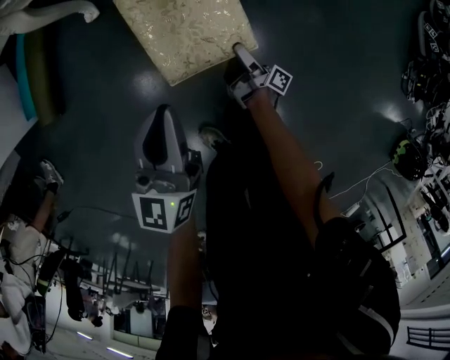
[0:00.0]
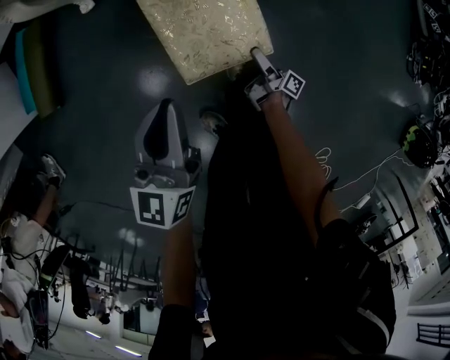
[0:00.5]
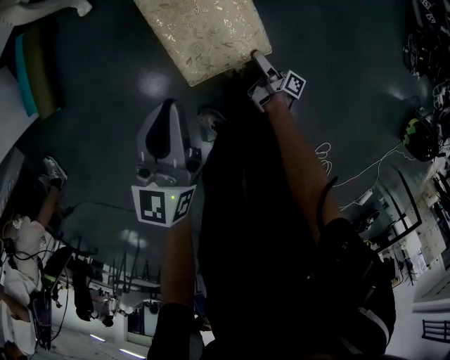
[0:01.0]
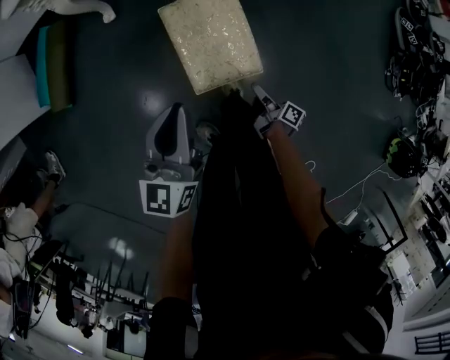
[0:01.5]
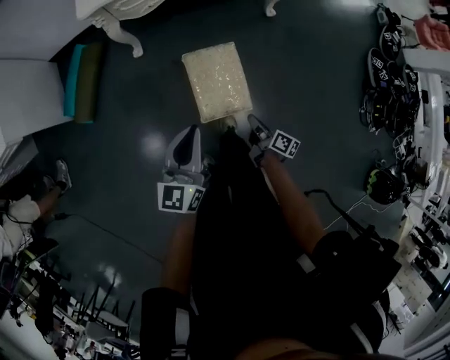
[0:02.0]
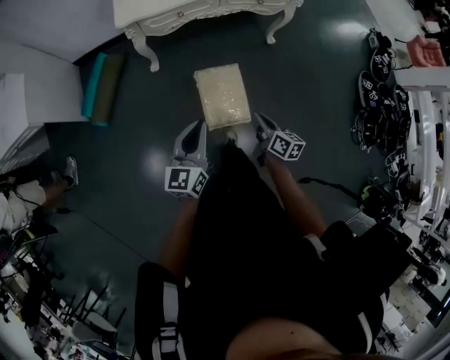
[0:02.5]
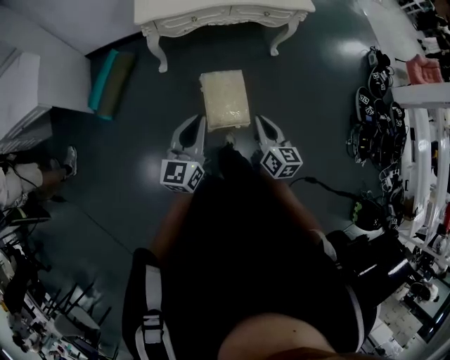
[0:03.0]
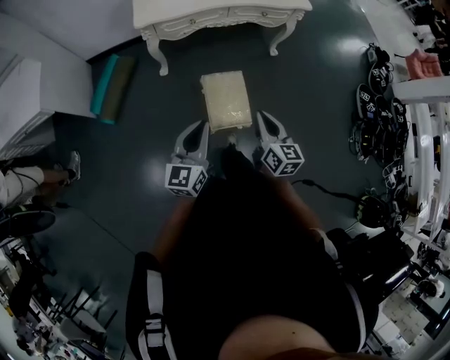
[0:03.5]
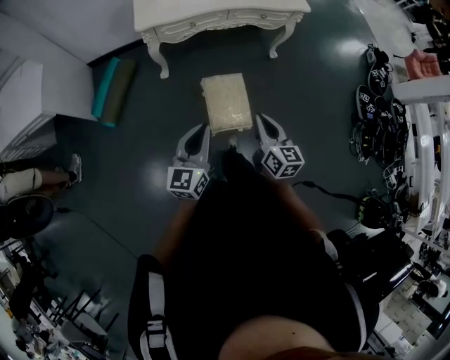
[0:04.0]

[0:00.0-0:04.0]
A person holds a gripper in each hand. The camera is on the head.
0:00.0 to 0:02.0: The left gripper shifts approximately 25 cm upward.
0:02.0 to 0:04.0: The left gripper moves upward, about 15 cm.

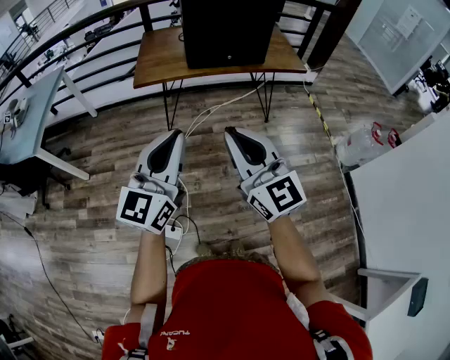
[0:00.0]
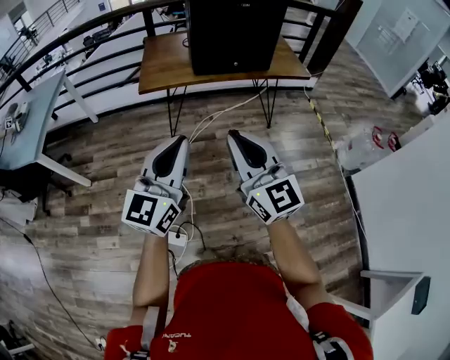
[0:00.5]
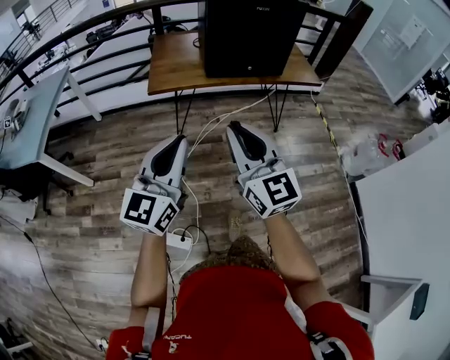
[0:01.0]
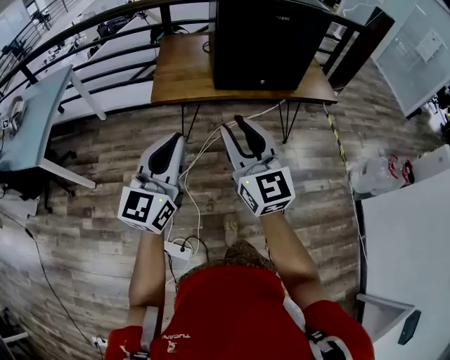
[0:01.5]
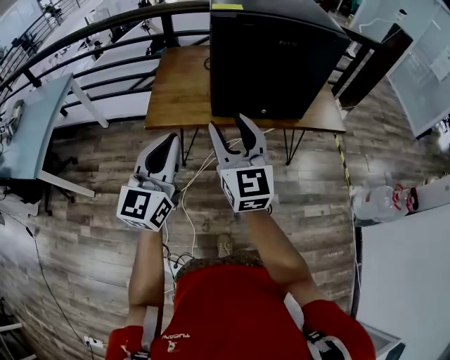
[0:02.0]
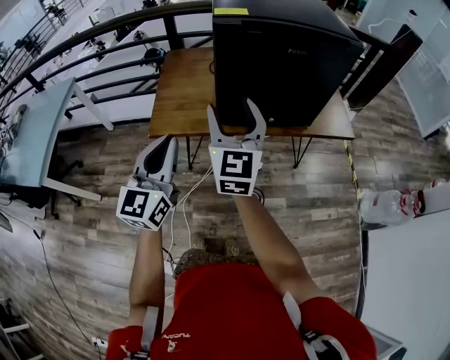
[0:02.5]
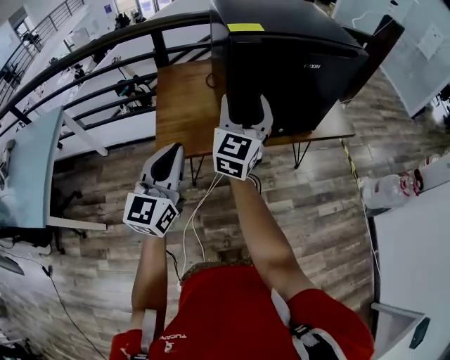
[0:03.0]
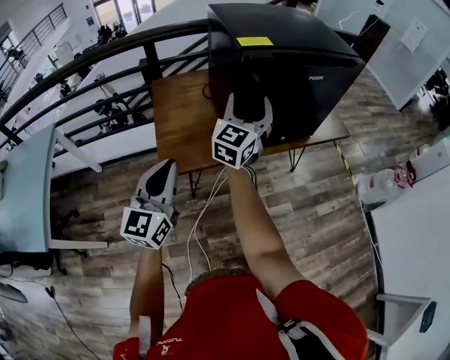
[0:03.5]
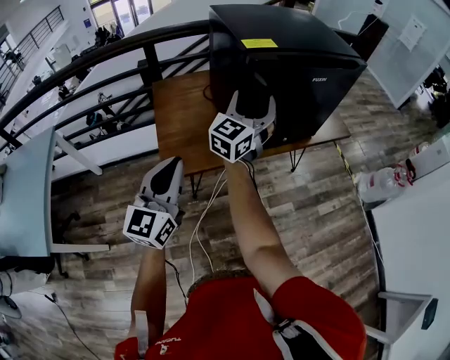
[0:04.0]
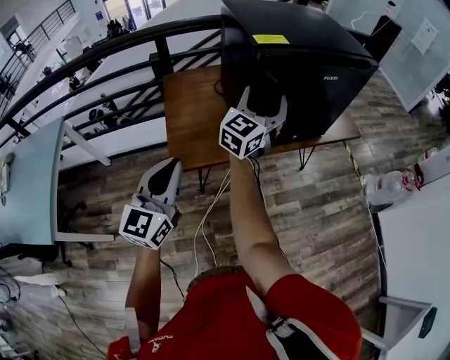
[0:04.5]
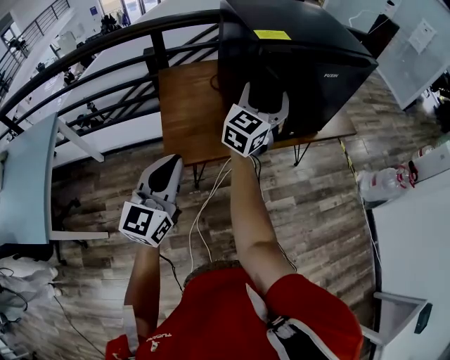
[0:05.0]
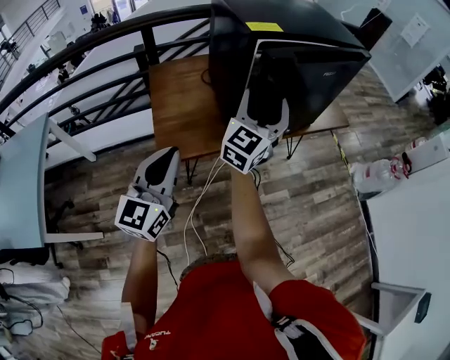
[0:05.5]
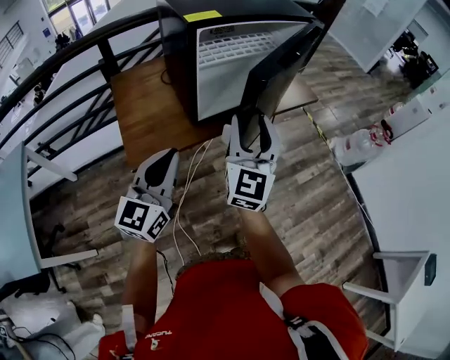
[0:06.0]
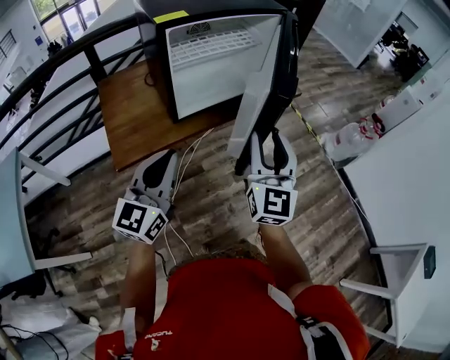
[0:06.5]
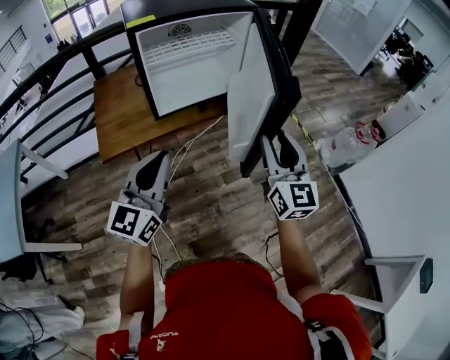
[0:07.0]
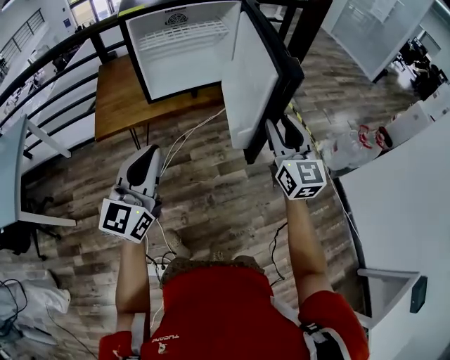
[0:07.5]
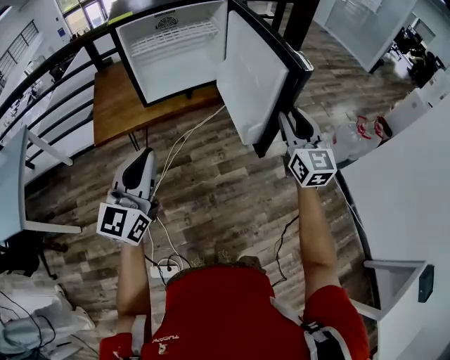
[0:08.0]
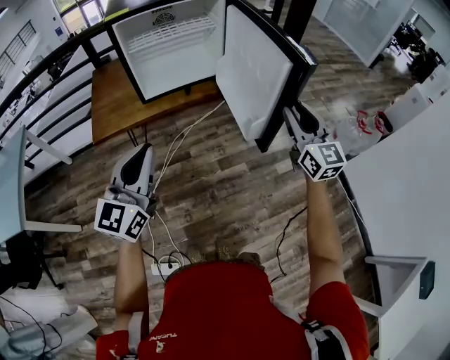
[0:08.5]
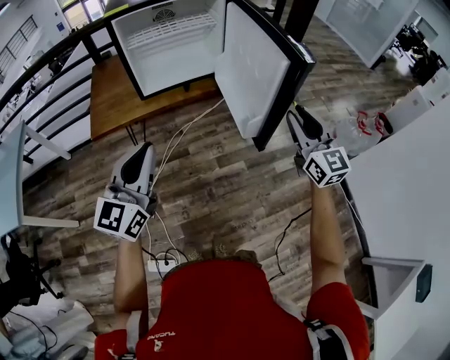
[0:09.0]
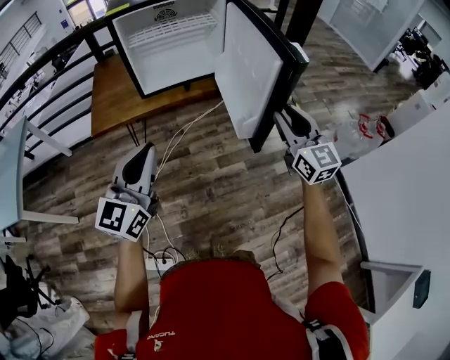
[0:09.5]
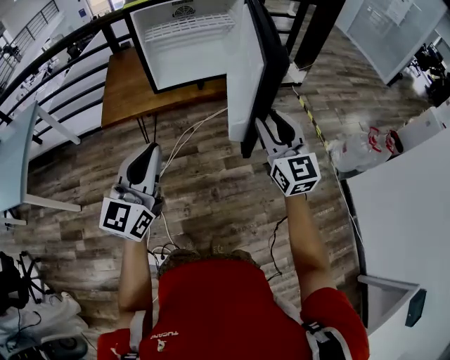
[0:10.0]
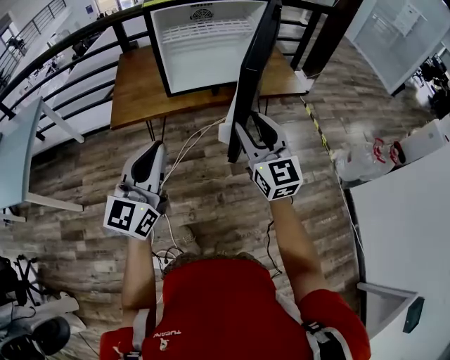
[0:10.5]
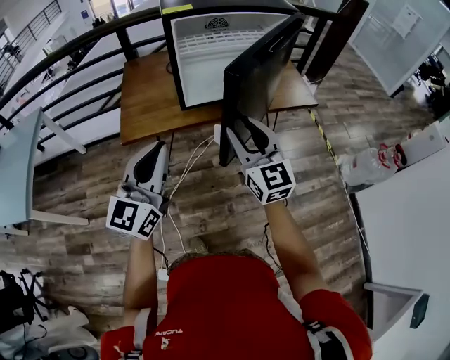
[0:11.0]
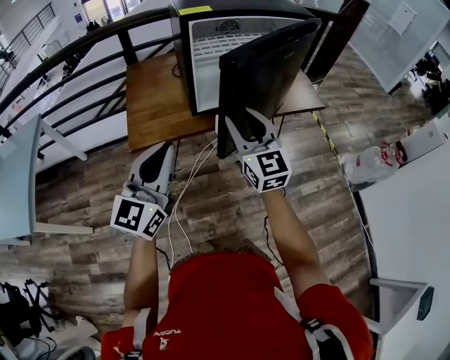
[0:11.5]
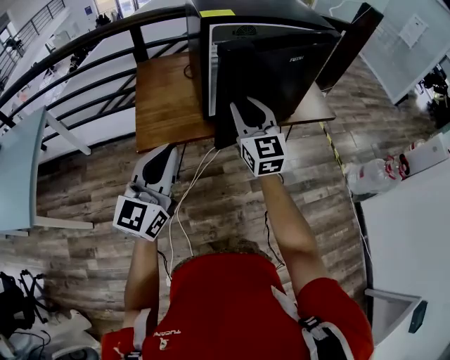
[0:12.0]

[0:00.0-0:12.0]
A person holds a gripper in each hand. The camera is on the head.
0:00.0 to 0:02.0: Both grippers travel together forward, some 35 cm. The right gripper opens up.
0:02.0 to 0:04.0: The right gripper changes place by about 25 cm, and turns by about 60 degrees; the left gripper changes place by roughly 20 cm.
0:04.0 to 0:06.0: The right gripper goes about 20 cm to the right and backward. The left gripper goes approximately 10 cm to the right.
0:06.0 to 0:08.0: The right gripper shifts roughly 40 cm to the right, and rotates approximately 20 degrees; the left gripper moves to the right and backward, some 30 cm.
0:08.0 to 0:10.0: The right gripper goes about 5 cm to the left.
0:10.0 to 0:12.0: Both grippers travel together to the left and forward, some 30 cm.

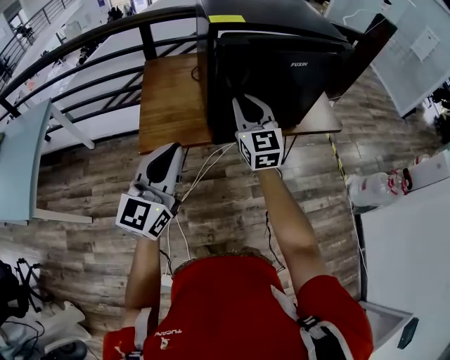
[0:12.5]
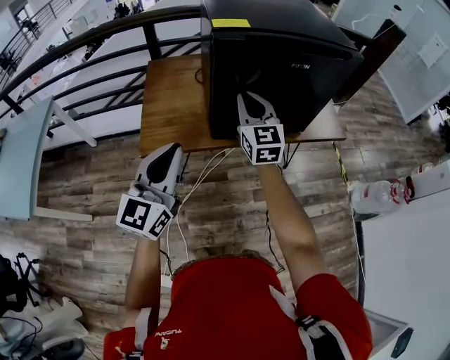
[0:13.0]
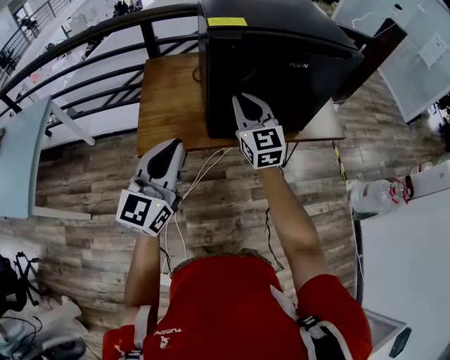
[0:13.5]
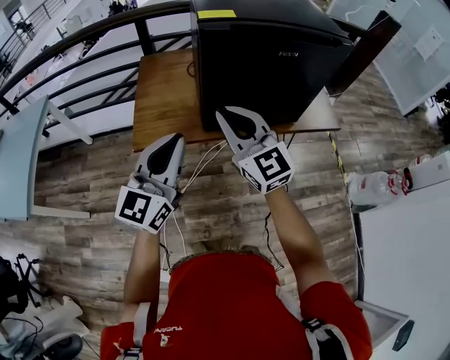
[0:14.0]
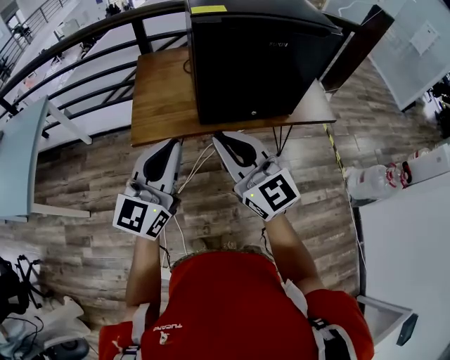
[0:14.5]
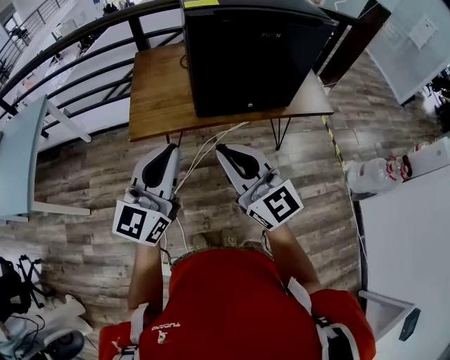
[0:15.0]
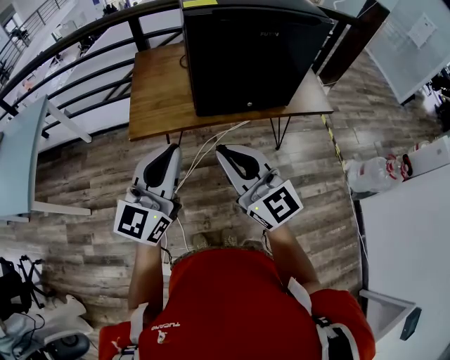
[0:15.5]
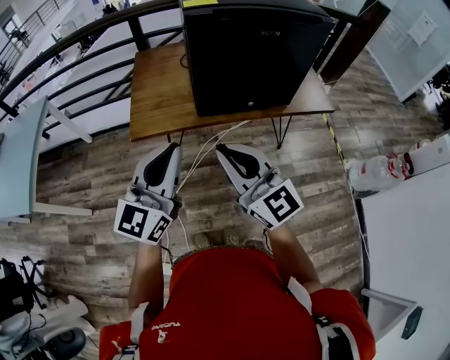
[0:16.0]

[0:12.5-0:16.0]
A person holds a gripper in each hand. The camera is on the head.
0:12.5 to 0:14.5: The right gripper goes approximately 15 cm backward, and turns by approximately 20 degrees.
0:14.5 to 0:16.0: The right gripper ends up some 5 cm from where it was.

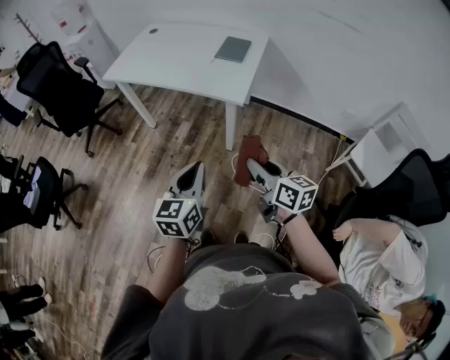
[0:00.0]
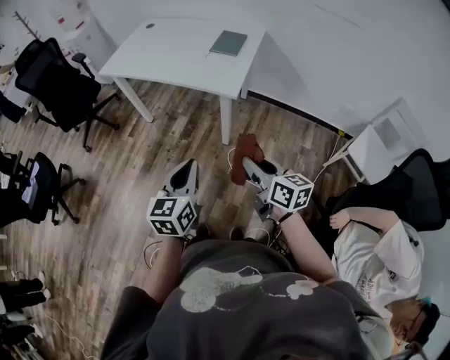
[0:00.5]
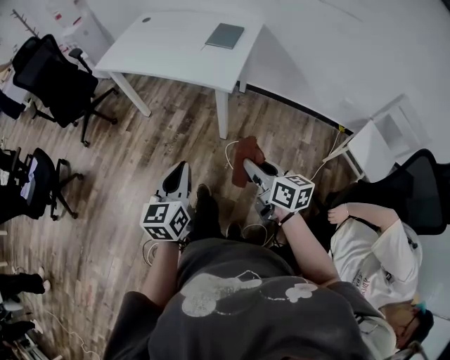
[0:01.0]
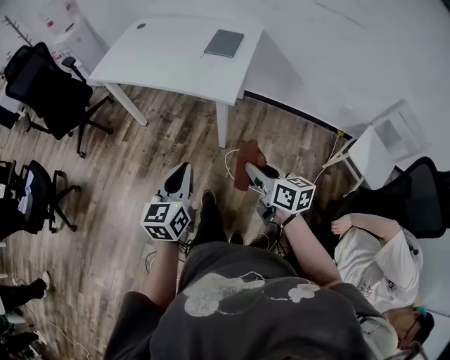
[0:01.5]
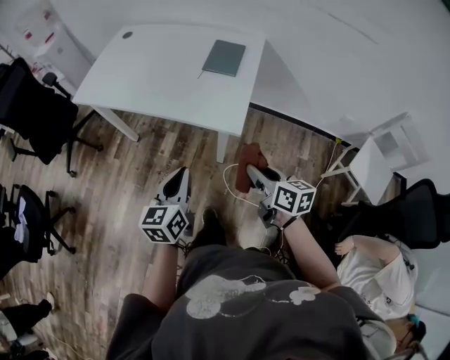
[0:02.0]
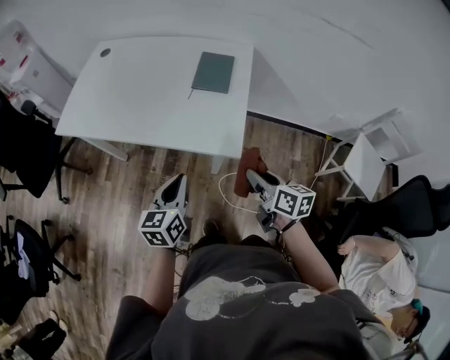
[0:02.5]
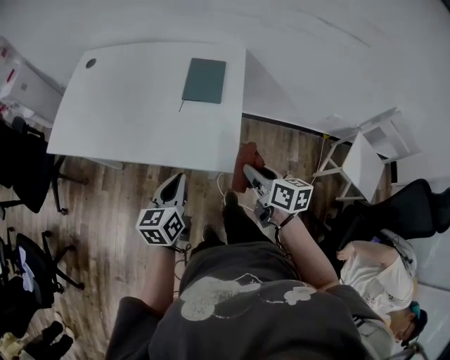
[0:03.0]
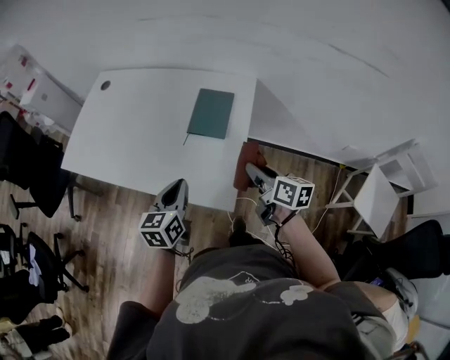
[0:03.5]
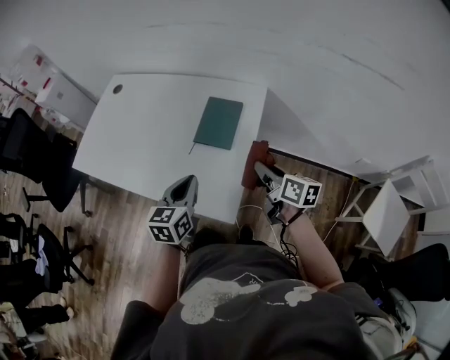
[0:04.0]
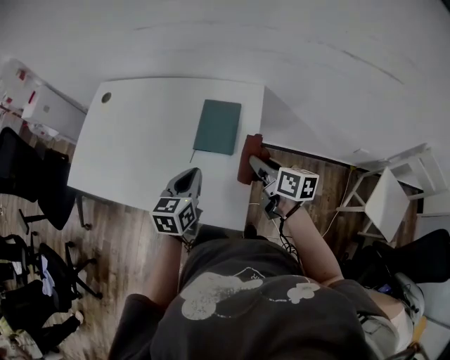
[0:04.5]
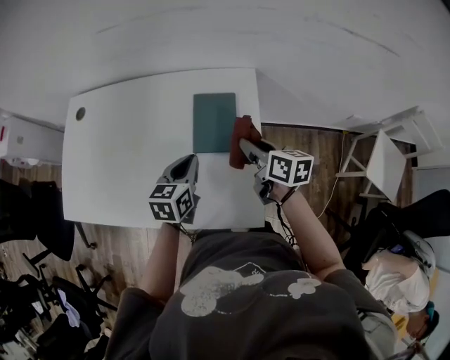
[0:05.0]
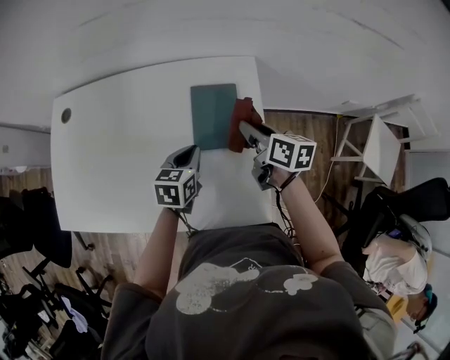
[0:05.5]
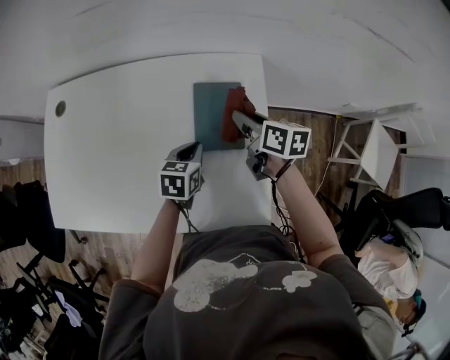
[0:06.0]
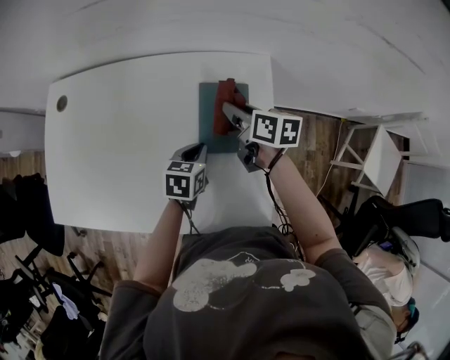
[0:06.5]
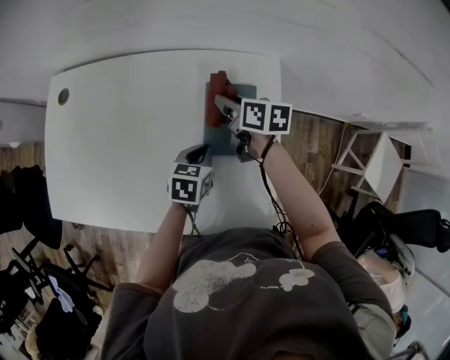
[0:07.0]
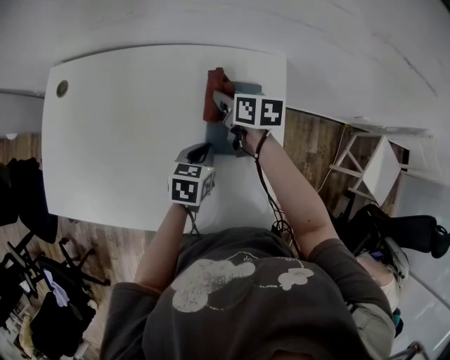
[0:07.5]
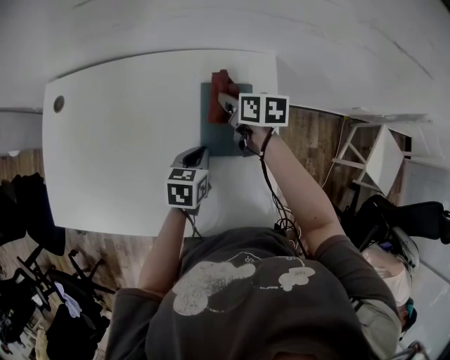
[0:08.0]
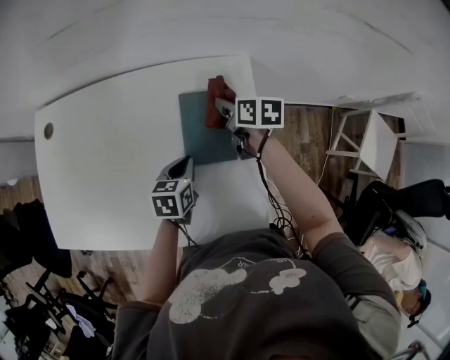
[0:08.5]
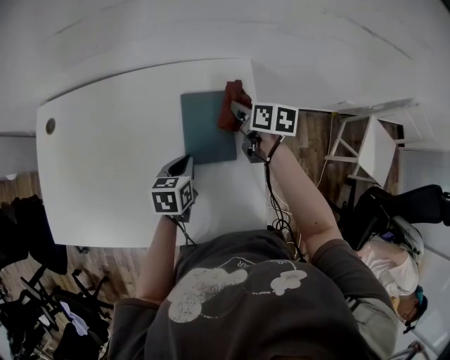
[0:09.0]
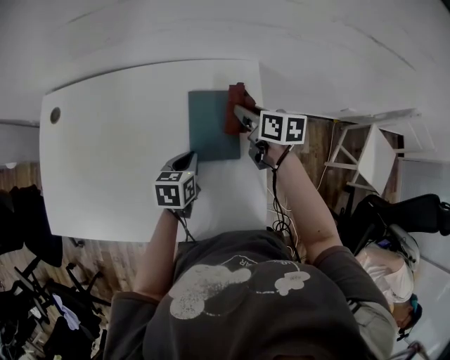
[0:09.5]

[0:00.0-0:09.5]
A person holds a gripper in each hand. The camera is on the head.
0:00.0 to 0:02.0: The grippers both shift forward by roughly 20 cm.
0:02.0 to 0:04.0: The grippers both shift forward by about 35 cm.
0:04.0 to 0:05.5: The right gripper goes roughly 20 cm forward and to the left. The left gripper is displaced forward and downward by about 20 cm, and rotates roughly 30 degrees.
0:05.5 to 0:07.5: The left gripper shifts roughly 5 cm downward, while the right gripper goes roughly 20 cm forward, to the left and downward.
0:07.5 to 0:09.5: The right gripper moves to the right, approximately 10 cm.
